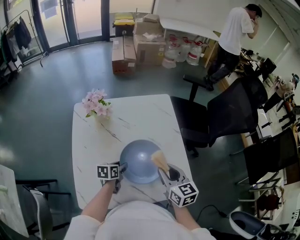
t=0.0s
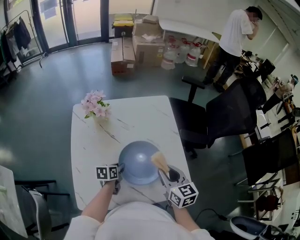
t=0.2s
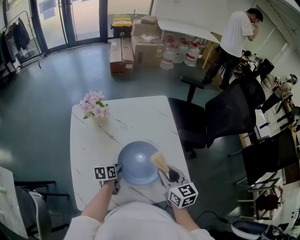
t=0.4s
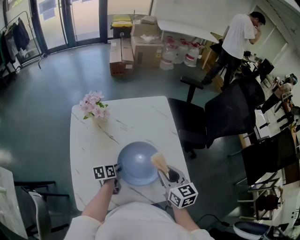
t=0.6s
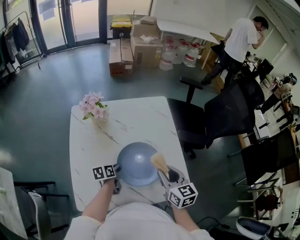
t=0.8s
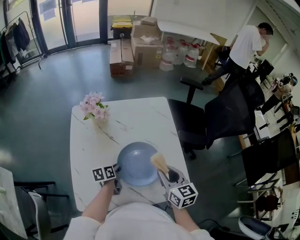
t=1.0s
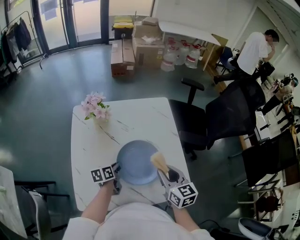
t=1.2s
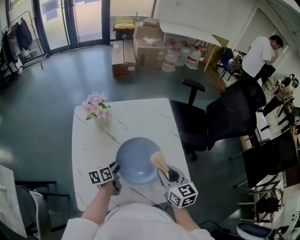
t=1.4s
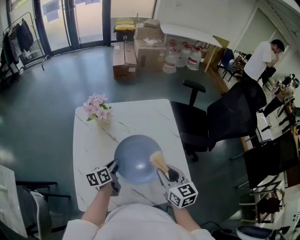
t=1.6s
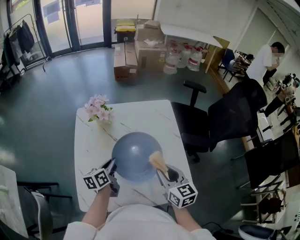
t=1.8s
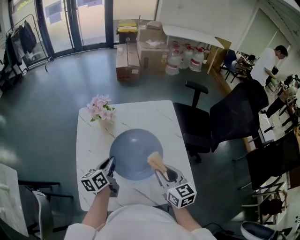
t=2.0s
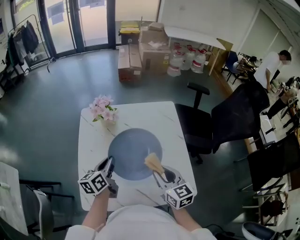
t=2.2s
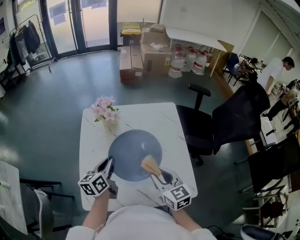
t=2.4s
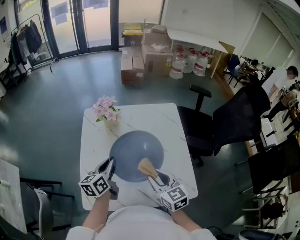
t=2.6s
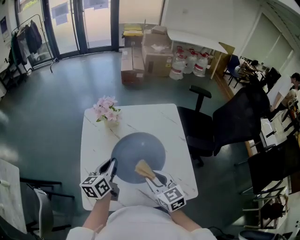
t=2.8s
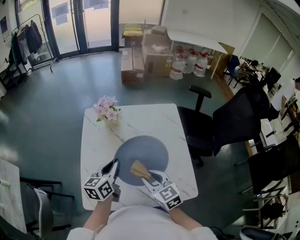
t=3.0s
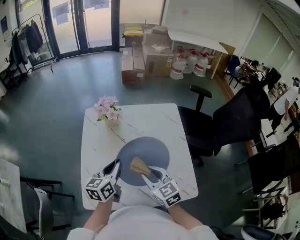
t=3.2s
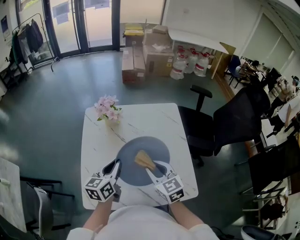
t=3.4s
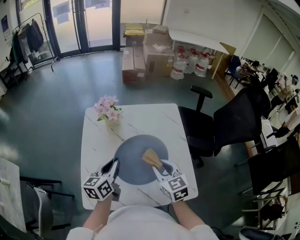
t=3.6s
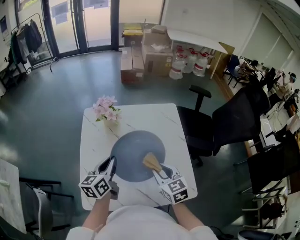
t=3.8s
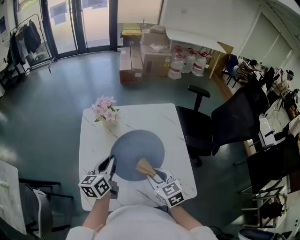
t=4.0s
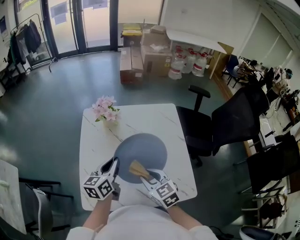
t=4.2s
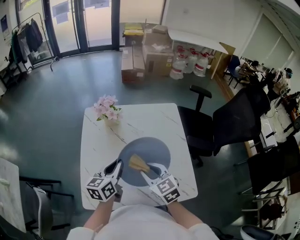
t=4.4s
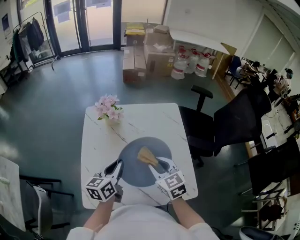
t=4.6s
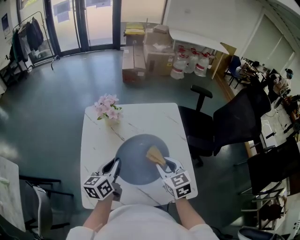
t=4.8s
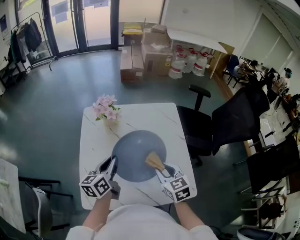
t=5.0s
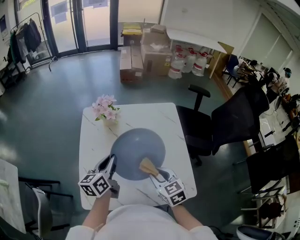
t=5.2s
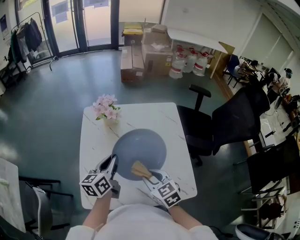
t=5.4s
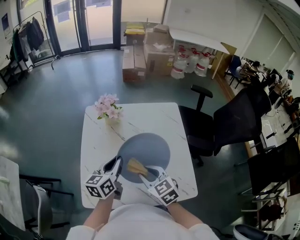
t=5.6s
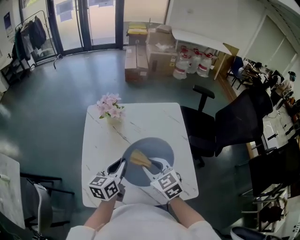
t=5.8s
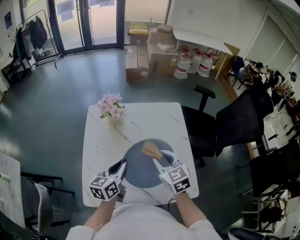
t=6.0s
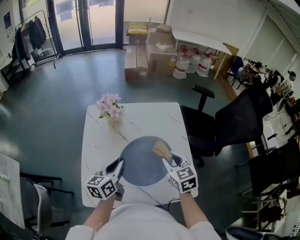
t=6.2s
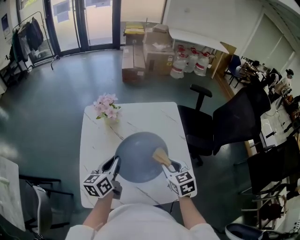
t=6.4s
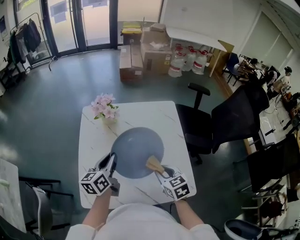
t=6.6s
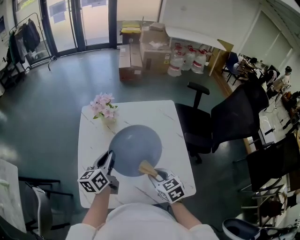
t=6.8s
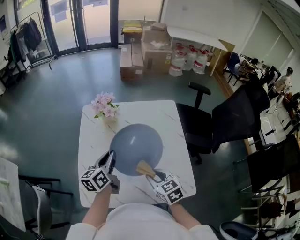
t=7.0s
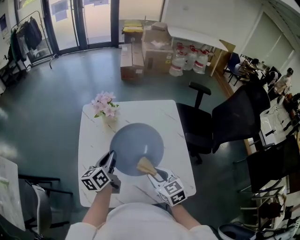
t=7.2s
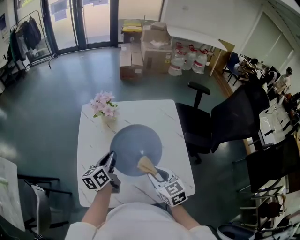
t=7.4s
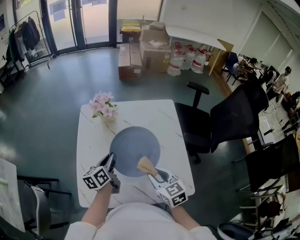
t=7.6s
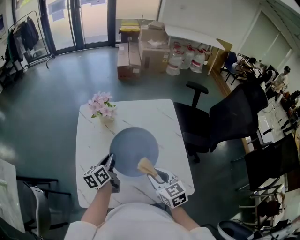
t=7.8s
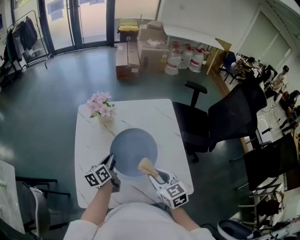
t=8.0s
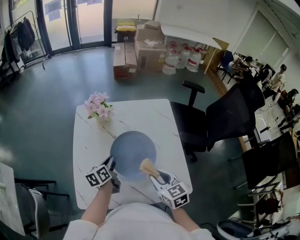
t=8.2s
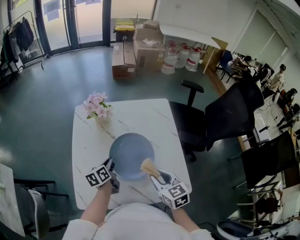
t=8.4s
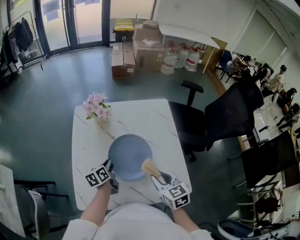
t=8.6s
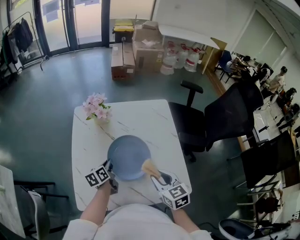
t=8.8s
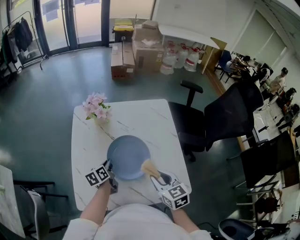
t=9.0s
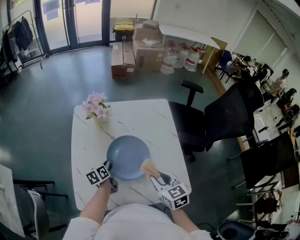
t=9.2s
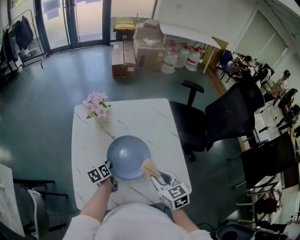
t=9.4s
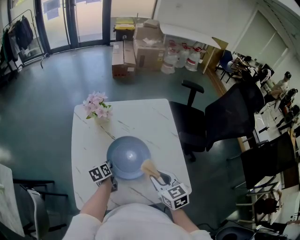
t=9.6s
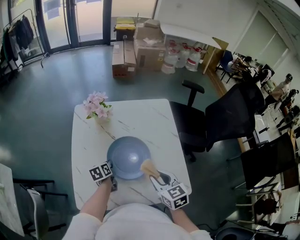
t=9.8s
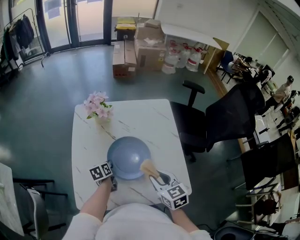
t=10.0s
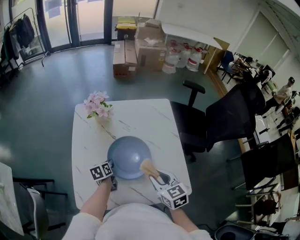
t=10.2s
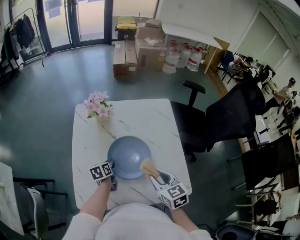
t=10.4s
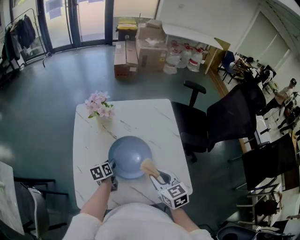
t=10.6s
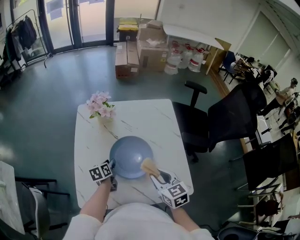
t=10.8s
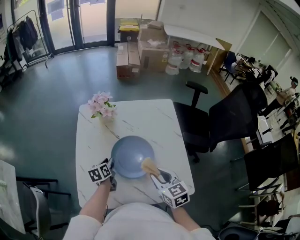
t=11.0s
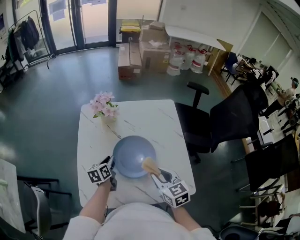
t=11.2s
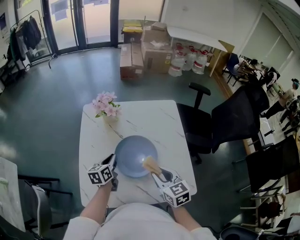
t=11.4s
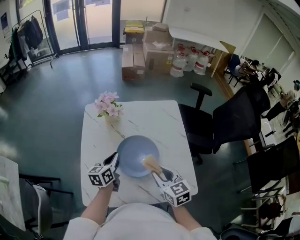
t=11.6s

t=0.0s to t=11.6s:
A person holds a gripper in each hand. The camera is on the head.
t=0.0s to t=1.4s: The left gripper rotates roughly 20 degrees, and closes its fingers.
t=1.4s to t=2.8s: The left gripper moves upward, some 15 cm, and swivels about 20 degrees. Meanwhile the right gripper travels to the left by roughly 10 cm.
t=2.8s to t=4.4s: The grippers move only a little.
t=4.4s to t=5.8s: The right gripper travels to the right and back again, about 10 cm each way.
t=5.8s to t=7.2s: The left gripper moves approximately 5 cm, while the right gripper changes place by roughly 10 cm.
t=7.2s to t=8.8s: The left gripper shifts approximately 15 cm downward.
t=8.8s to t=10.2s: The left gripper shifts about 5 cm downward.
t=10.2s to t=11.6s: The left gripper shifts about 15 cm upward, swivels approximately 30 degrees, and opens and closes again.

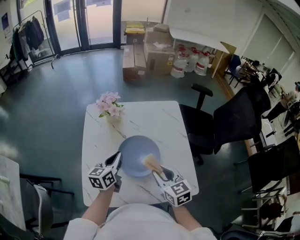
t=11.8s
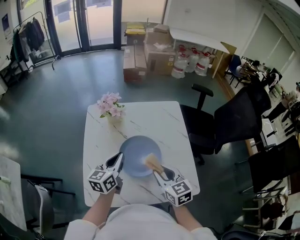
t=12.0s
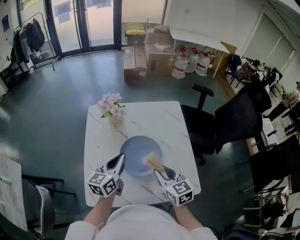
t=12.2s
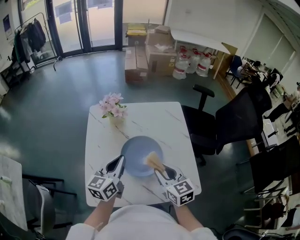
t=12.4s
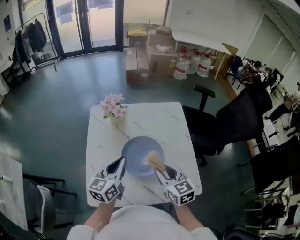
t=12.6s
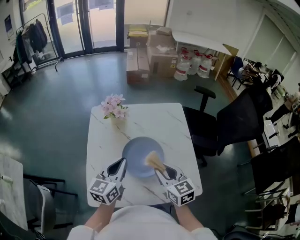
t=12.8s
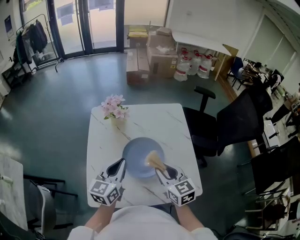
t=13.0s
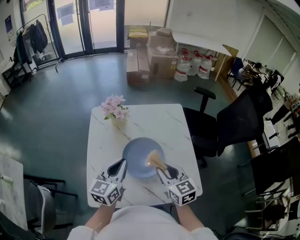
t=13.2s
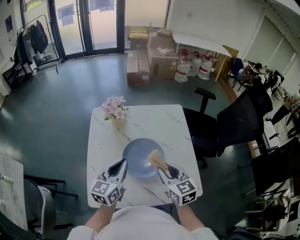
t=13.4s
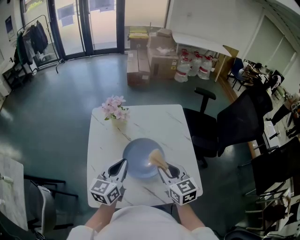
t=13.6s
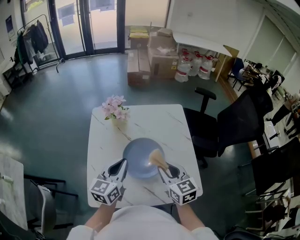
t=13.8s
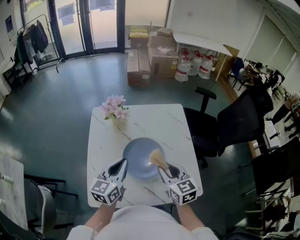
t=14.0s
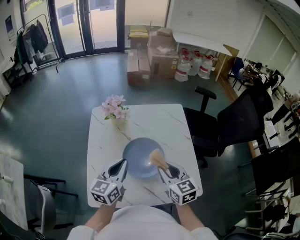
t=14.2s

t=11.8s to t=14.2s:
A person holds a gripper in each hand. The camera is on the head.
t=11.8s to t=13.0s: The left gripper is displaced upward and backward by roughly 10 cm.
t=13.0s to t=14.2s: Neither gripper changes place.

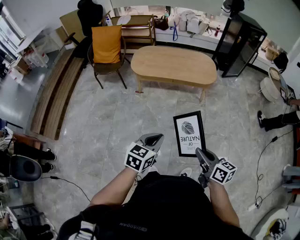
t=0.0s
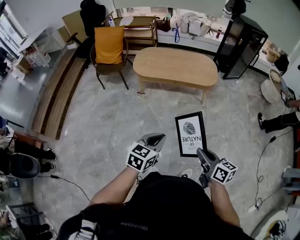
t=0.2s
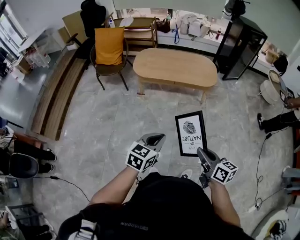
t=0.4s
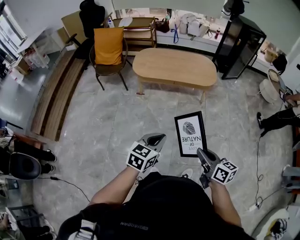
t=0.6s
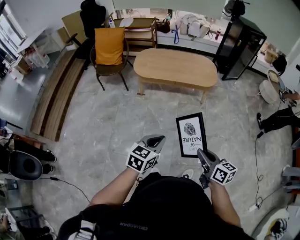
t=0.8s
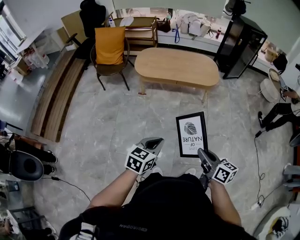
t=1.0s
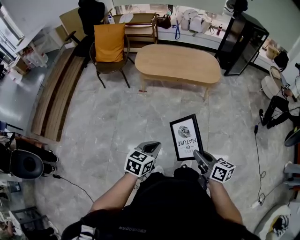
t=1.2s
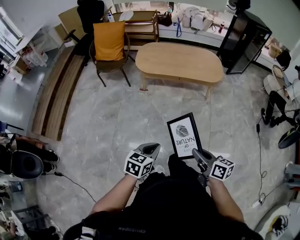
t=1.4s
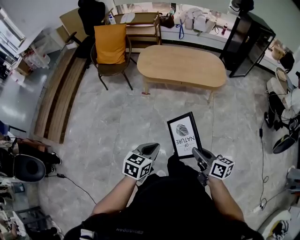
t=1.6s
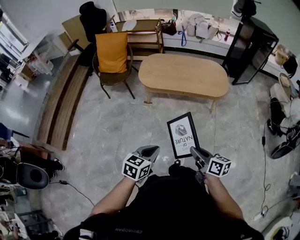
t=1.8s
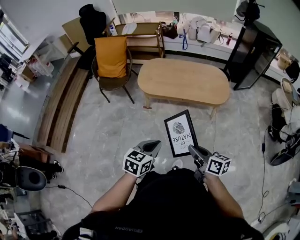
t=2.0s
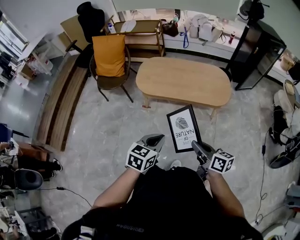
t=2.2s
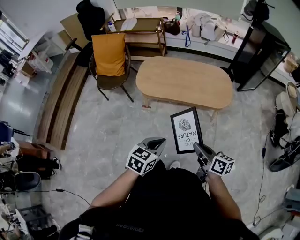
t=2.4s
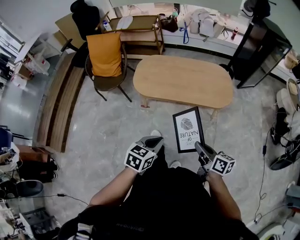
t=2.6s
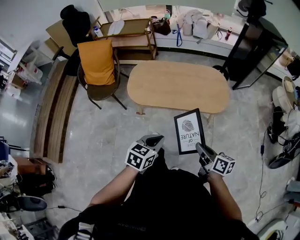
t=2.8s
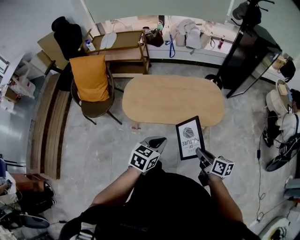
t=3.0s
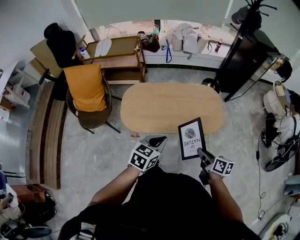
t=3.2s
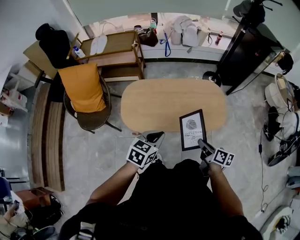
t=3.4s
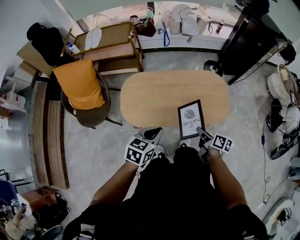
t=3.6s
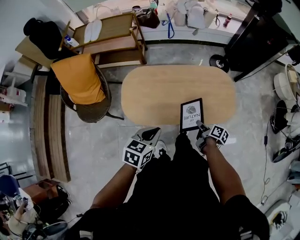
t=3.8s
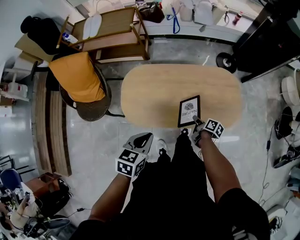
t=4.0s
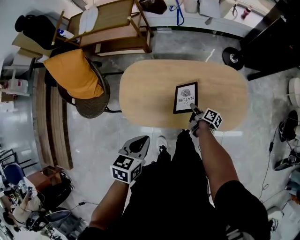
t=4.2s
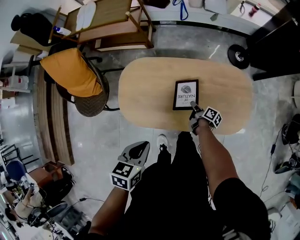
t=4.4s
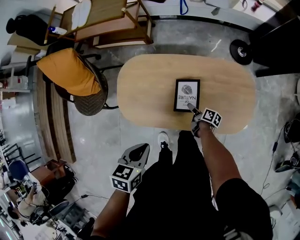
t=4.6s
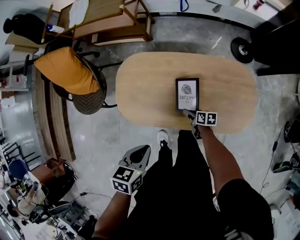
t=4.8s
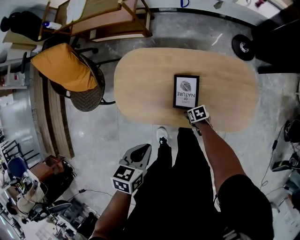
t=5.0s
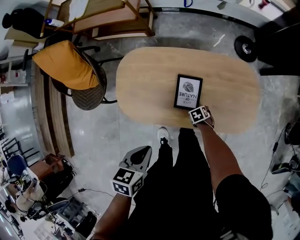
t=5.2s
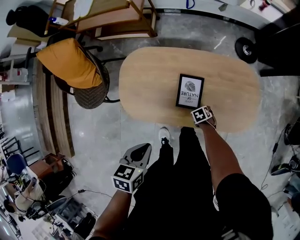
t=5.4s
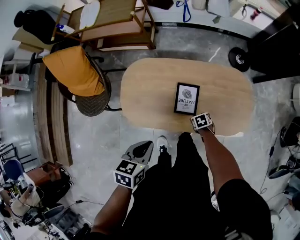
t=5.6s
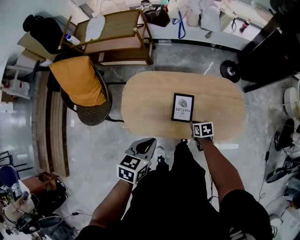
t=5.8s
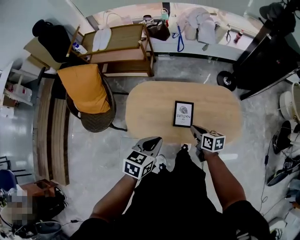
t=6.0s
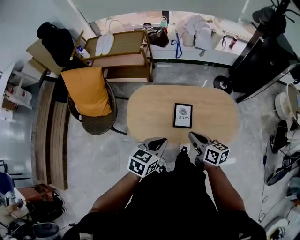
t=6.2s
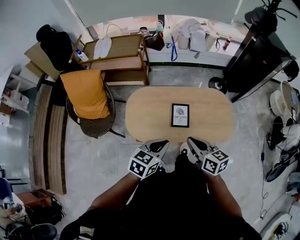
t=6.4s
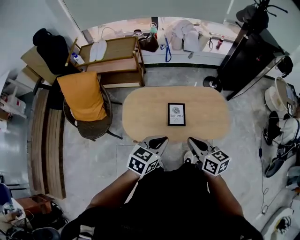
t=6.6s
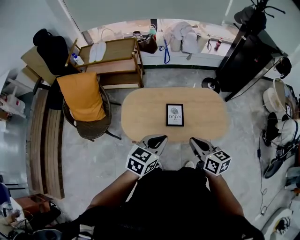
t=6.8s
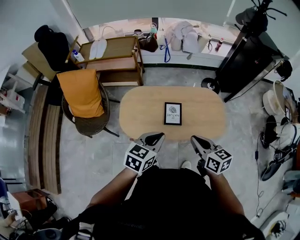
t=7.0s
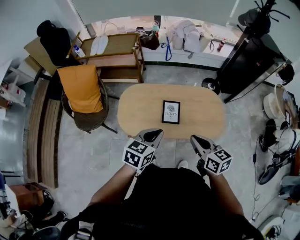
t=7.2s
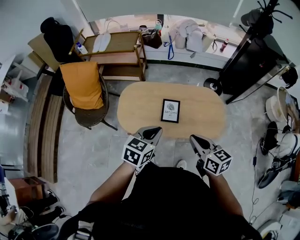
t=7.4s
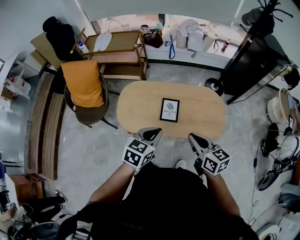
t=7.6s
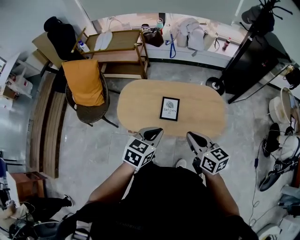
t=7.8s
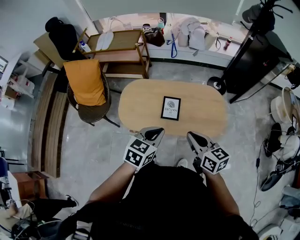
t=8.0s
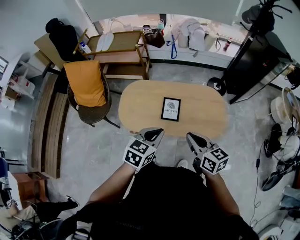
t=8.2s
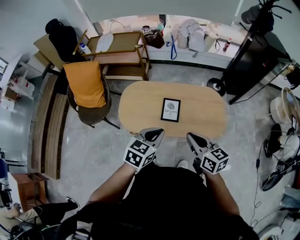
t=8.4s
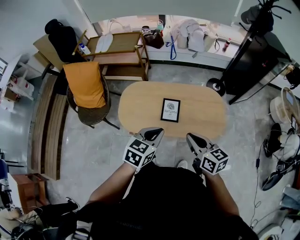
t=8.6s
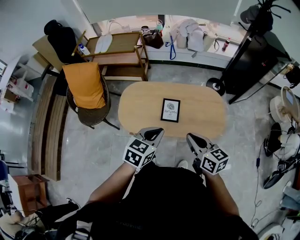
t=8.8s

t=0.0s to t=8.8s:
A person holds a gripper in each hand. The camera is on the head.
t=0.0s to t=1.4s: The right gripper goes about 10 cm to the left; the left gripper shifts roughly 10 cm to the left and downward.
t=1.4s to t=3.0s: Both grippers are carried forward, roughly 50 cm.
t=3.0s to t=4.4s: The right gripper shifts roughly 60 cm forward and downward, and changes its angle by roughly 40 degrees. Meanwhile the left gripper goes some 25 cm forward and to the left, and changes its angle by approximately 20 degrees.
t=4.4s to t=5.8s: The right gripper is displaced upward by roughly 5 cm, twists some 60 degrees counterclockwise, seen from behind, and opens, then closes again.
t=5.8s to t=7.4s: The left gripper shifts roughly 15 cm upward, backward and to the right. The right gripper moves upward and backward, approximately 40 cm, and tilts its fingers about 40 degrees upward.
t=7.4s to t=8.8s: The grippers make only small movements.

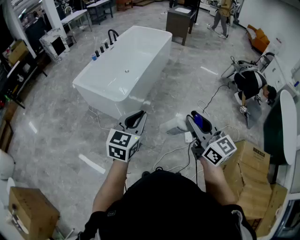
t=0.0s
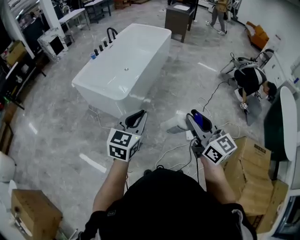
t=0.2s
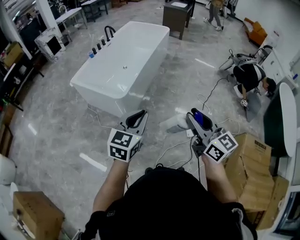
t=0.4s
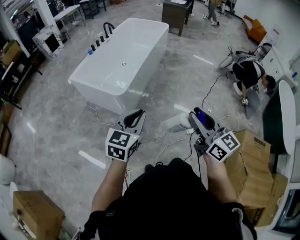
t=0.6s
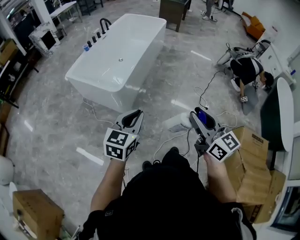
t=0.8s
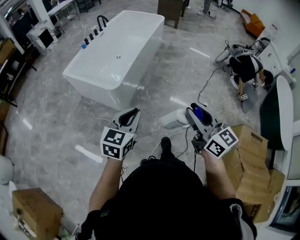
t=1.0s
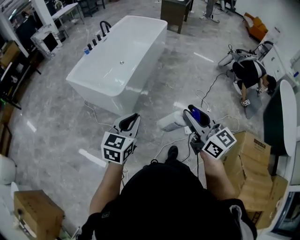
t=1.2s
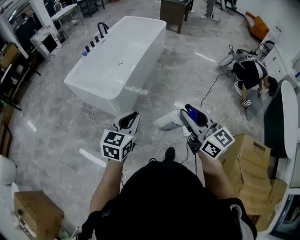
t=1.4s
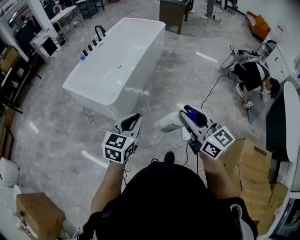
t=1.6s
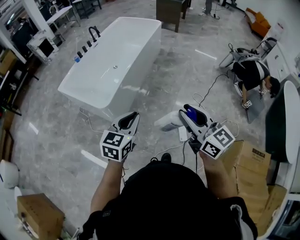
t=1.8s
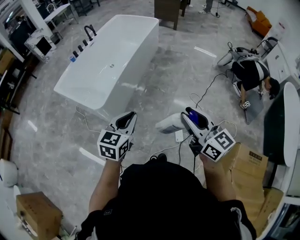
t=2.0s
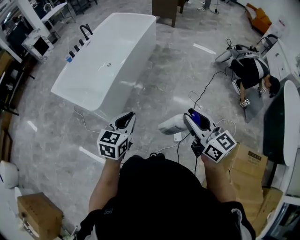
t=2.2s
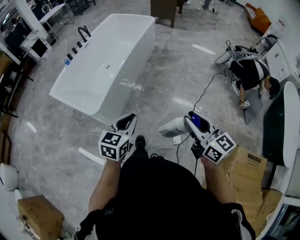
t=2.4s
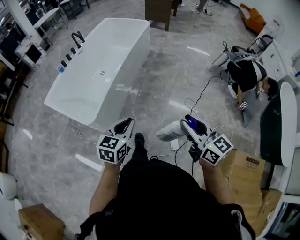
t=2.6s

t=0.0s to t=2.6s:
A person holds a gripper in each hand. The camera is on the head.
t=0.0s to t=1.2s: The left gripper heads downward, covering approximately 5 cm.
t=1.2s to t=2.6s: Both grippers travel together forward and to the right, some 35 cm.
